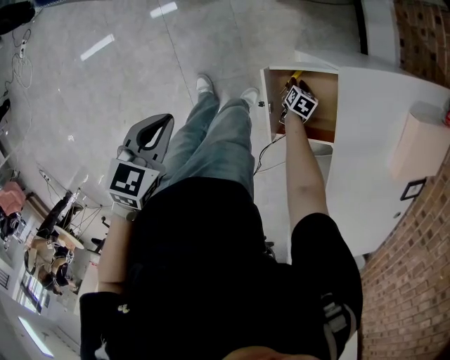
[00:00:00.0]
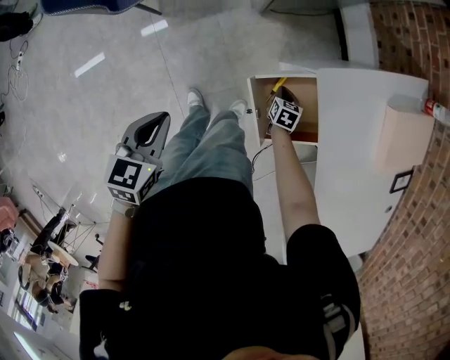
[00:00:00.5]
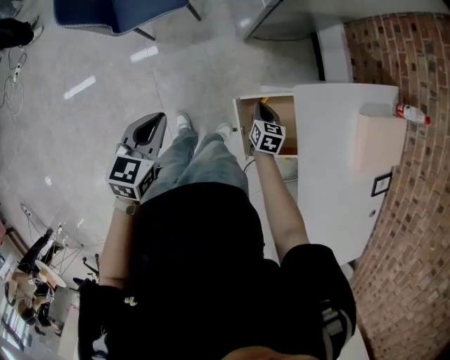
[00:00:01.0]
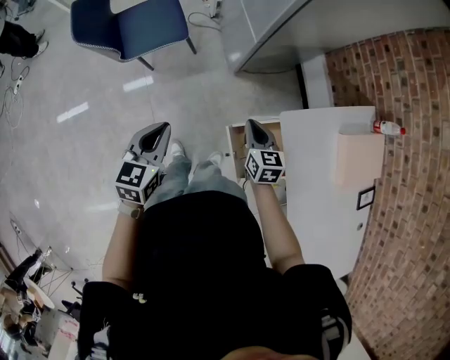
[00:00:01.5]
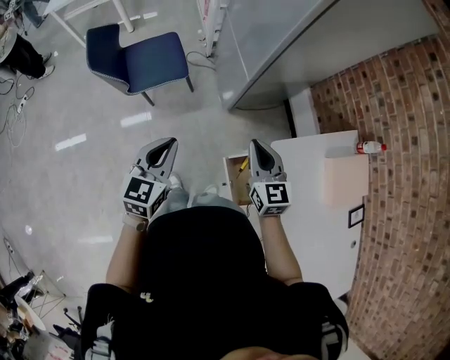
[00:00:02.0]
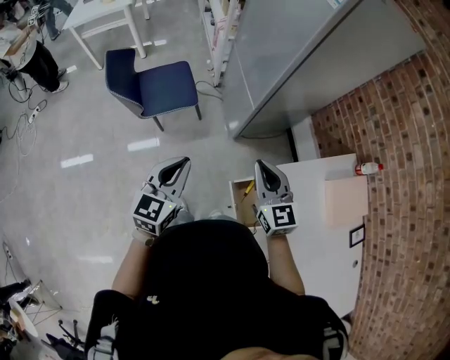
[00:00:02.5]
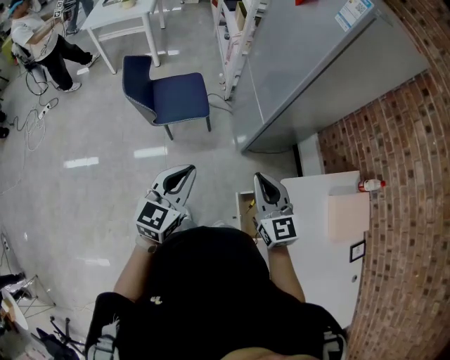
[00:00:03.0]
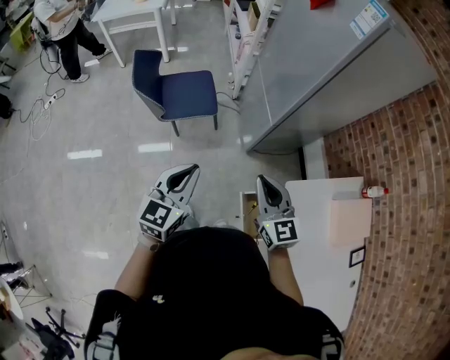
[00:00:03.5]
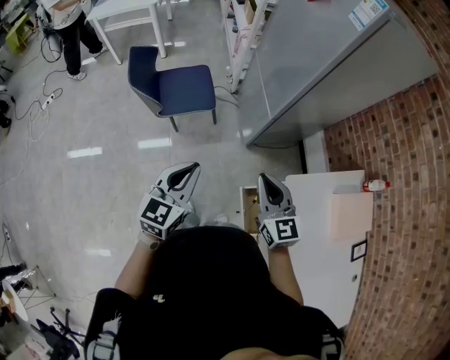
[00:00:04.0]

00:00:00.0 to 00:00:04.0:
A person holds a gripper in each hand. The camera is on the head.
00:00:00.0 to 00:00:02.0: The right gripper travels upward by approximately 60 cm, angles its fingers upward, by about 50 degrees, and closes its fingers. Meanwhile the left gripper is displaced upward by roughly 20 cm, and tilts its fingers roughly 30 degrees upward.
00:00:02.0 to 00:00:04.0: The right gripper travels upward and to the left by some 10 cm. Meanwhile the left gripper heads upward, covering some 5 cm.

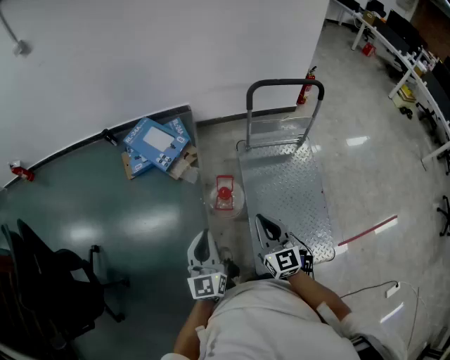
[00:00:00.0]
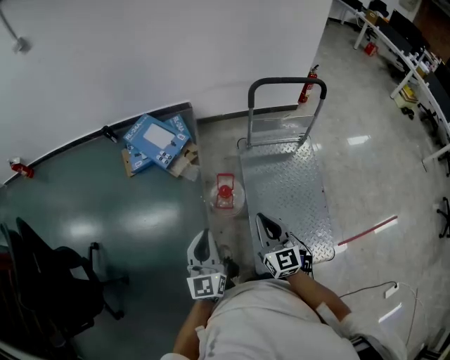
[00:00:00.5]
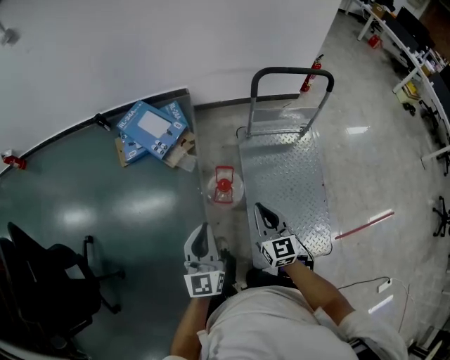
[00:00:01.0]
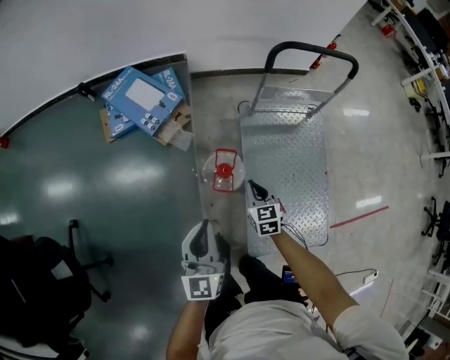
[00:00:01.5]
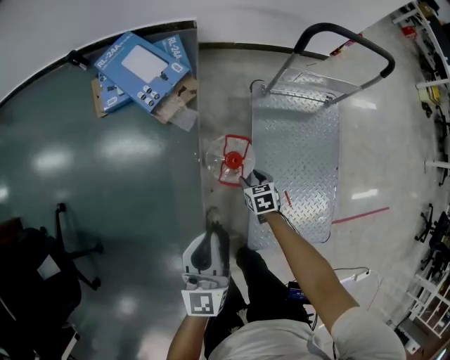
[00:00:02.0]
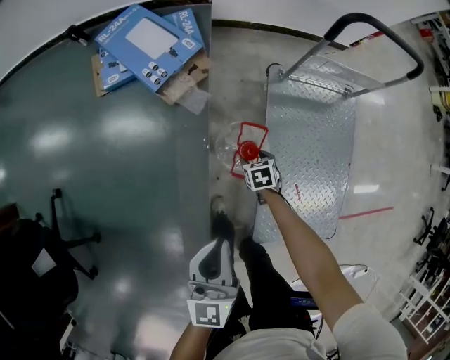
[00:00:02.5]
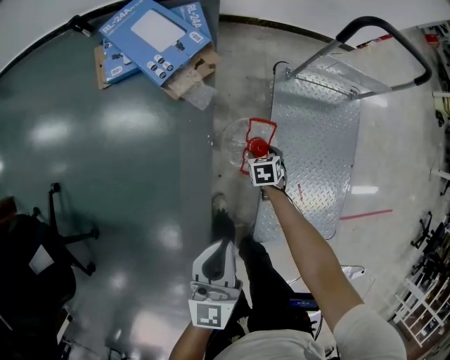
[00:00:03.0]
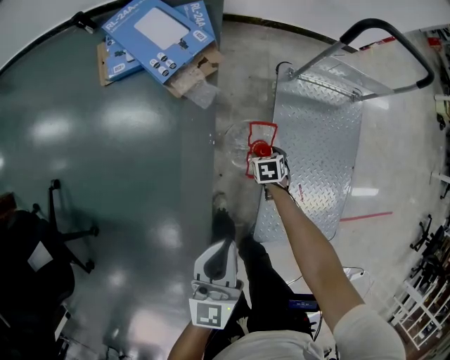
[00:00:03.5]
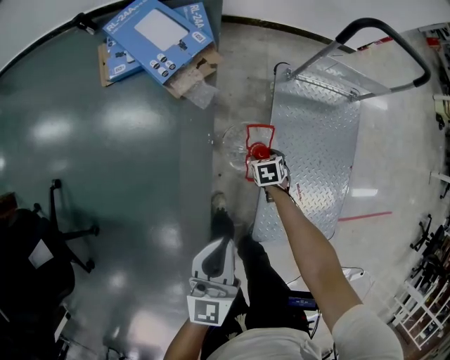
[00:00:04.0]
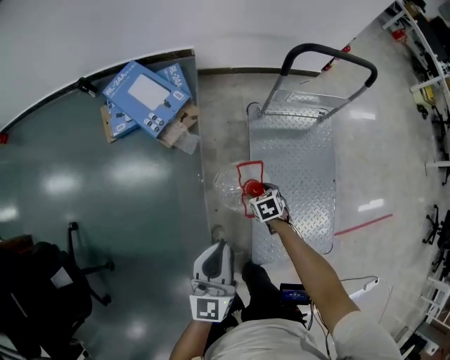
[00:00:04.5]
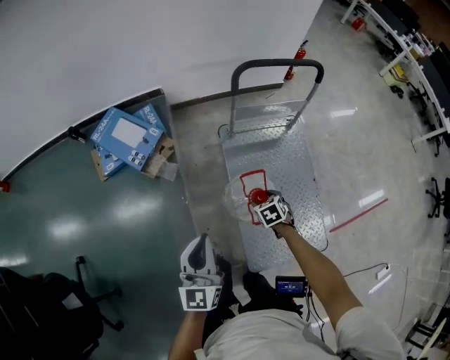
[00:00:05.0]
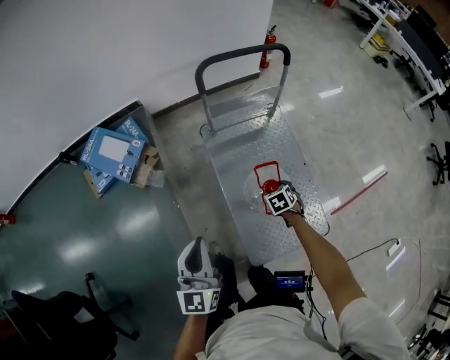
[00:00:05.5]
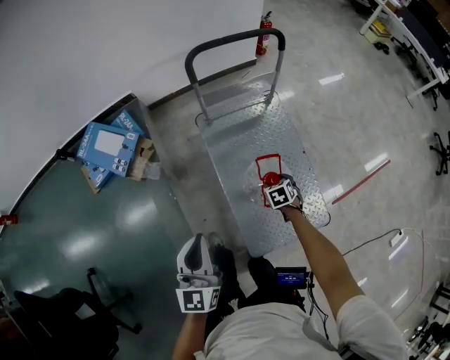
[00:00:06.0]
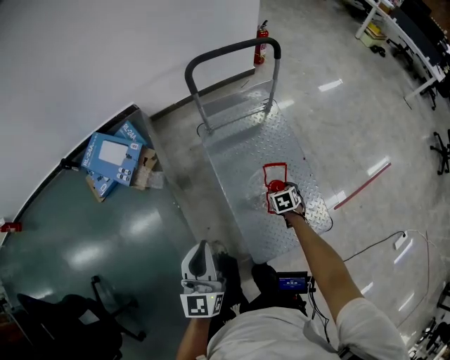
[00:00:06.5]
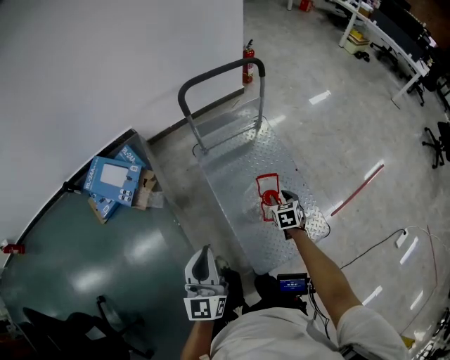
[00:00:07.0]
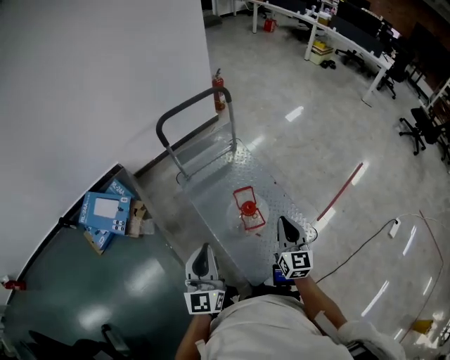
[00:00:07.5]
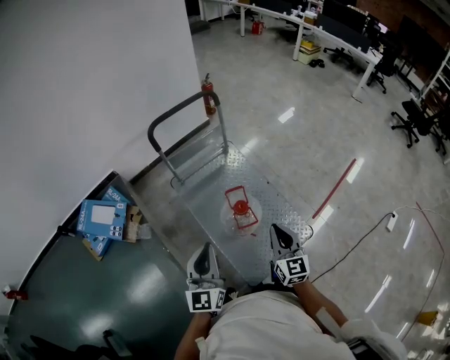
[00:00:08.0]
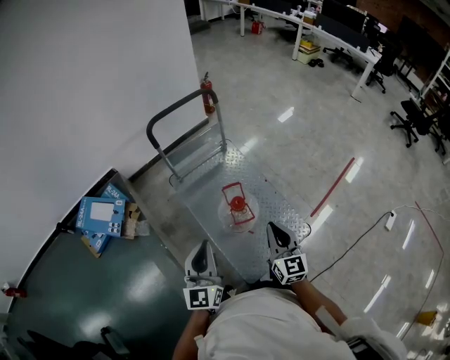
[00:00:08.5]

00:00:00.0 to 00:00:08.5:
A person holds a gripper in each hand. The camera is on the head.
00:00:00.0 to 00:00:02.0: The right gripper shifts some 50 cm downward and forward, tilts its fingers some 50 degrees downward, and opens; the left gripper heads downward and forward, covering about 15 cm.
00:00:02.0 to 00:00:04.0: The left gripper ends up some 5 cm from where it was. Meanwhile the right gripper heads downward, covering roughly 10 cm.
00:00:04.0 to 00:00:06.5: The left gripper ends up some 25 cm from where it was, and turns by about 20 degrees, while the right gripper changes place by some 40 cm, and rotates about 20 degrees.
00:00:06.5 to 00:00:08.5: The left gripper heads to the right and upward, covering some 15 cm. Meanwhile the right gripper goes roughly 40 cm upward and backward, angles its fingers upward, by about 60 degrees, and closes up.

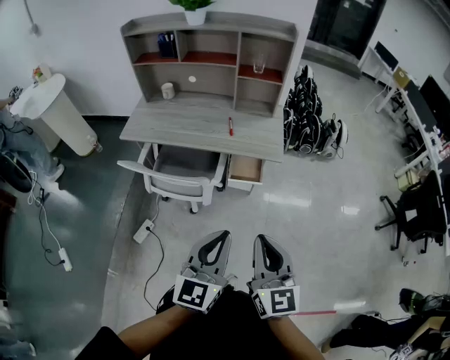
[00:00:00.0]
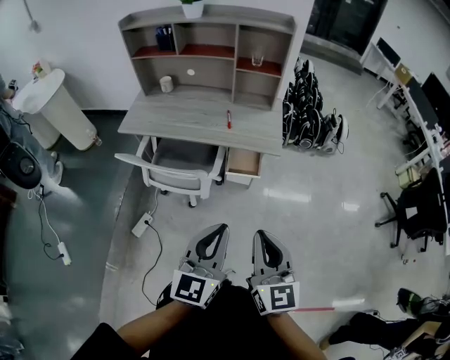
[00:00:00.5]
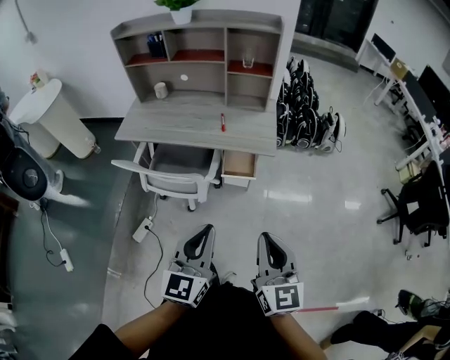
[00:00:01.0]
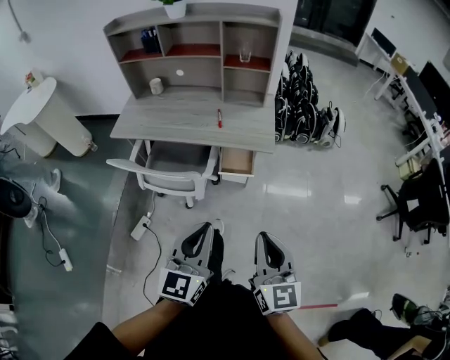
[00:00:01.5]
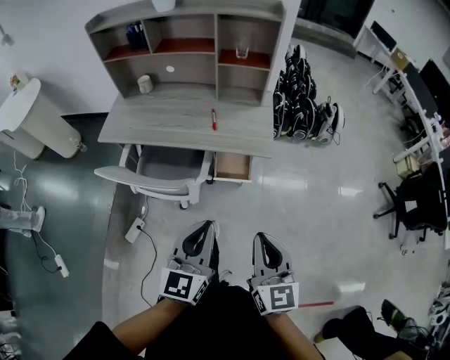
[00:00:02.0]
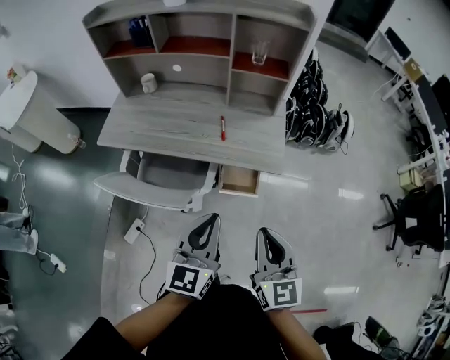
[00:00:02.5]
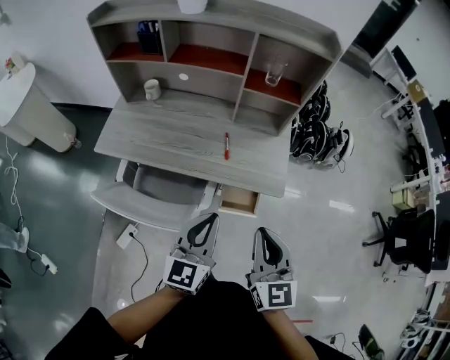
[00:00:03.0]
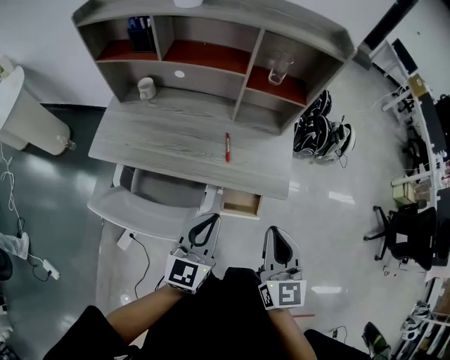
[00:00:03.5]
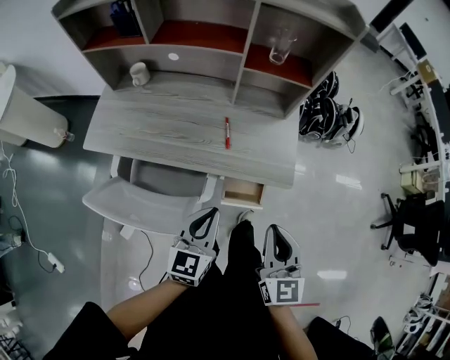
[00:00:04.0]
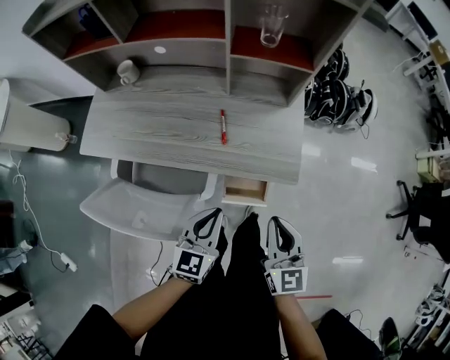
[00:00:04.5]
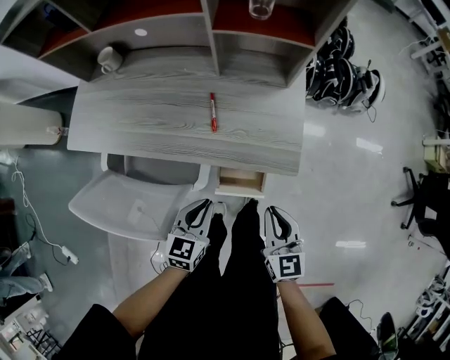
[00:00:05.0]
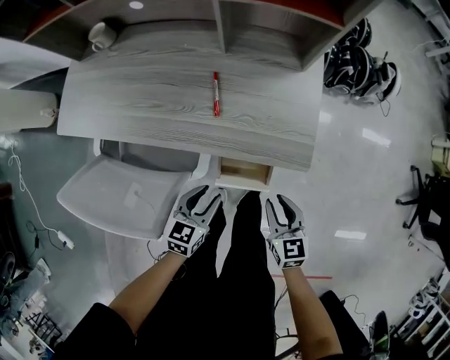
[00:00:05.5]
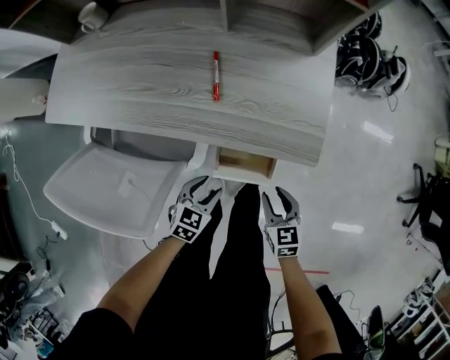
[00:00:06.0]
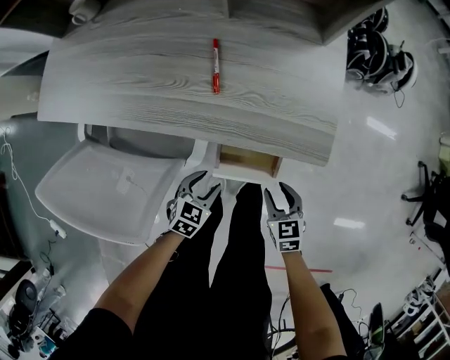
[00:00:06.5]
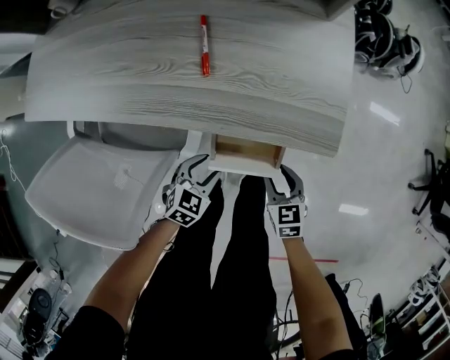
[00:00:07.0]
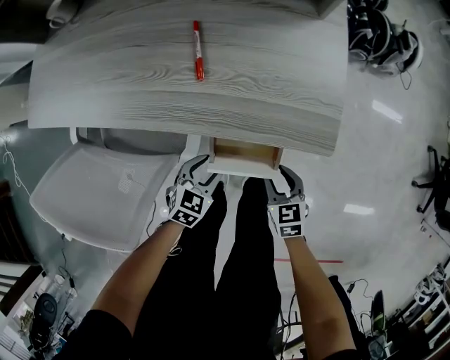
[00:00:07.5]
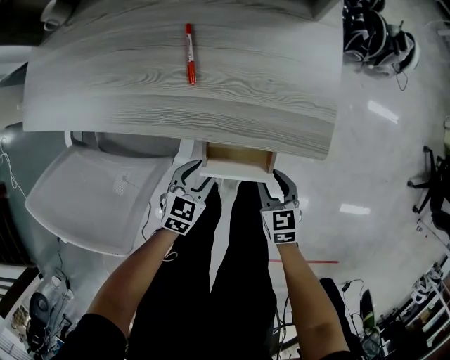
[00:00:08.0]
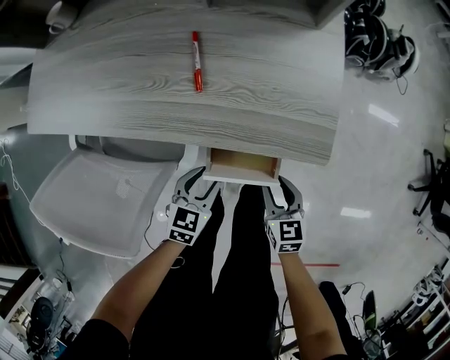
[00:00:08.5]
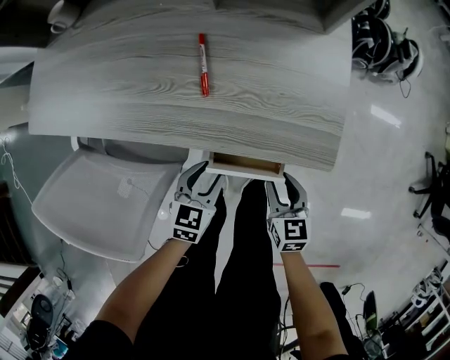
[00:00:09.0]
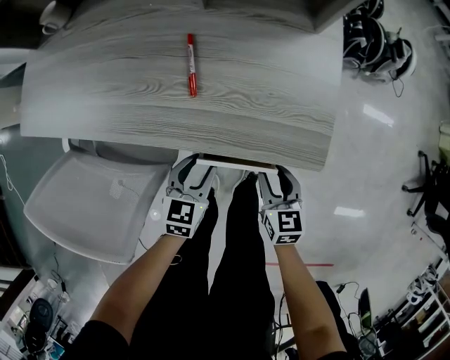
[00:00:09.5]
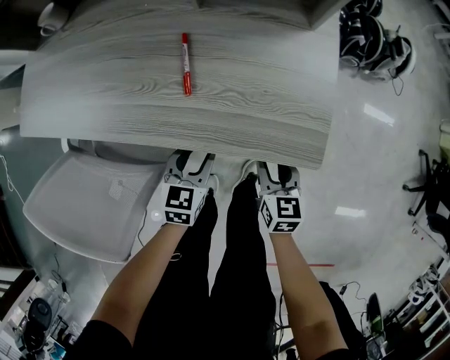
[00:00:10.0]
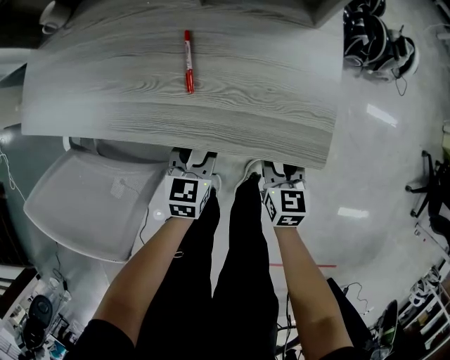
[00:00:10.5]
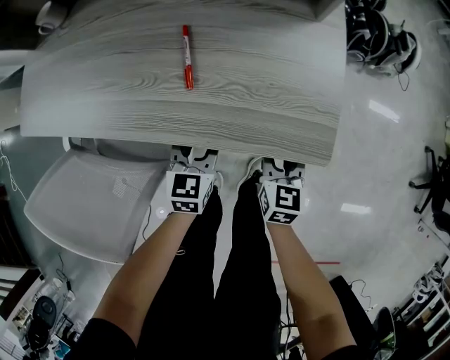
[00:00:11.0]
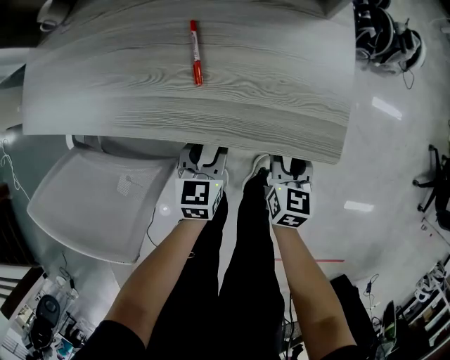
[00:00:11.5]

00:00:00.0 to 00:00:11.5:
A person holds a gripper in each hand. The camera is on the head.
00:00:00.0 to 00:00:02.0: The left gripper is displaced forward by about 10 cm. The right gripper goes some 10 cm forward and to the right.
00:00:02.0 to 00:00:04.0: The left gripper shifts approximately 30 cm forward and downward. Meanwhile the right gripper moves forward, about 25 cm.
00:00:04.0 to 00:00:06.0: Both grippers move downward, approximately 35 cm. The right gripper changes its angle by about 30 degrees, and opens its fingers. The left gripper tilts its fingers about 30 degrees downward, and opens up.
00:00:06.0 to 00:00:07.5: Both grippers travel together downward, roughly 10 cm.
00:00:07.5 to 00:00:09.5: Both grippers move forward and upward, approximately 10 cm. The left gripper changes its angle by some 20 degrees.

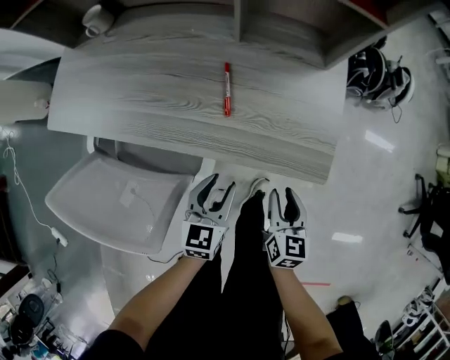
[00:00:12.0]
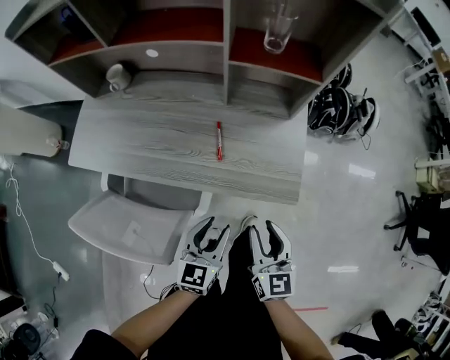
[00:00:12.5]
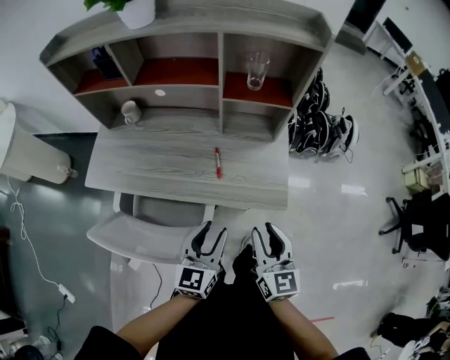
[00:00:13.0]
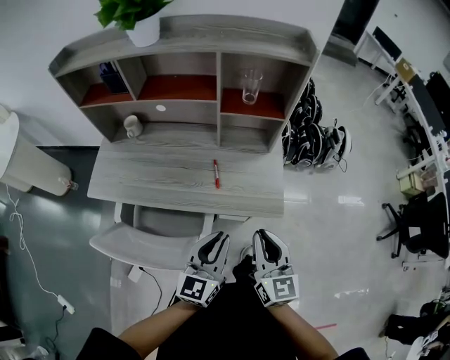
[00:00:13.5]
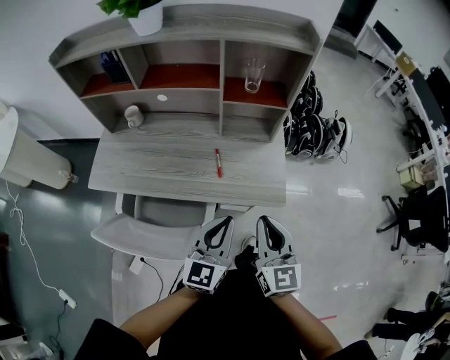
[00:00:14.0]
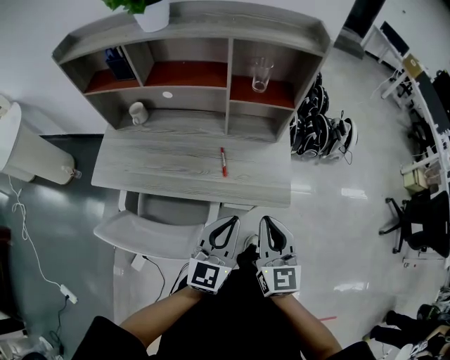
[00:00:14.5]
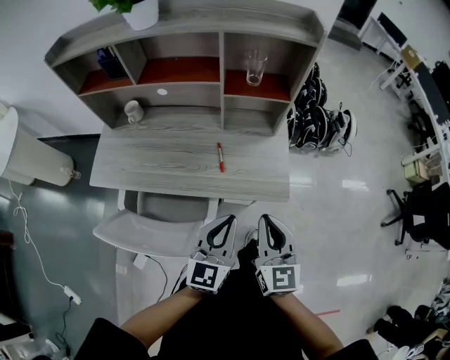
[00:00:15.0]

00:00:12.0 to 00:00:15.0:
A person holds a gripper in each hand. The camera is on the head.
00:00:12.0 to 00:00:13.5: Both grippers travel together upward, approximately 35 cm. The left gripper rotates about 30 degrees, and closes up; the right gripper changes its angle by some 30 degrees, and closes up.
00:00:13.5 to 00:00:15.0: The grippers stay close to where they were, moving slightly.
